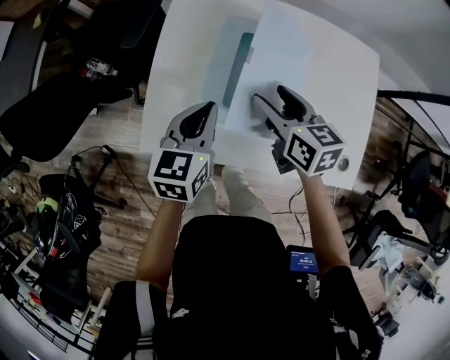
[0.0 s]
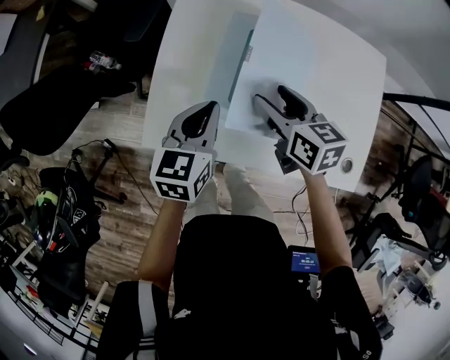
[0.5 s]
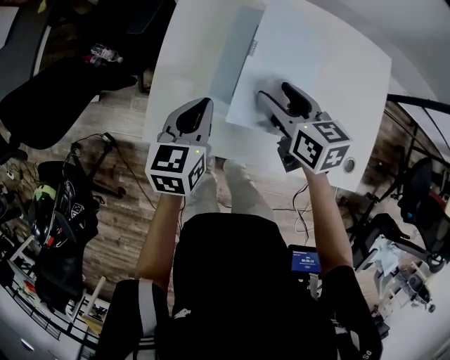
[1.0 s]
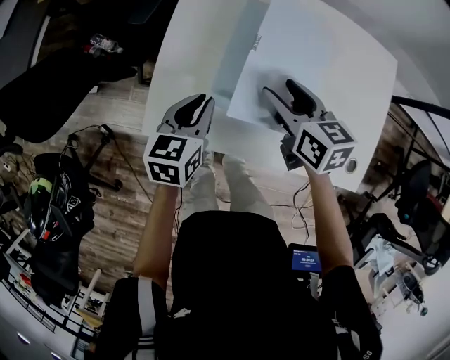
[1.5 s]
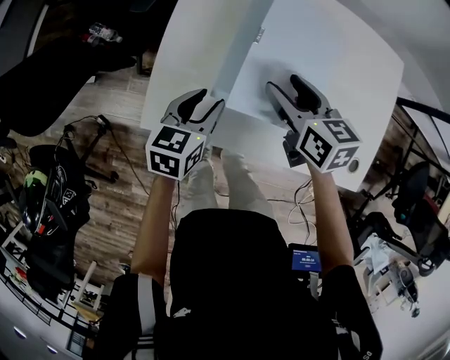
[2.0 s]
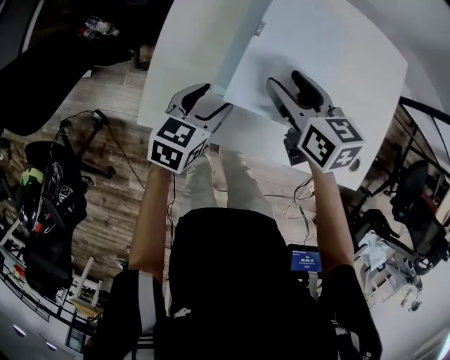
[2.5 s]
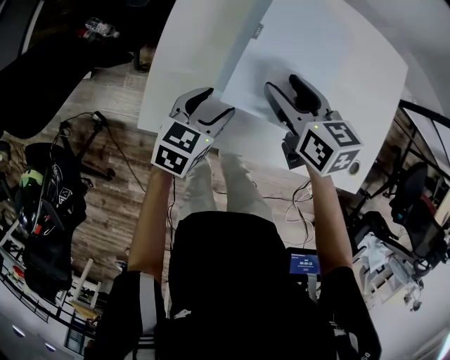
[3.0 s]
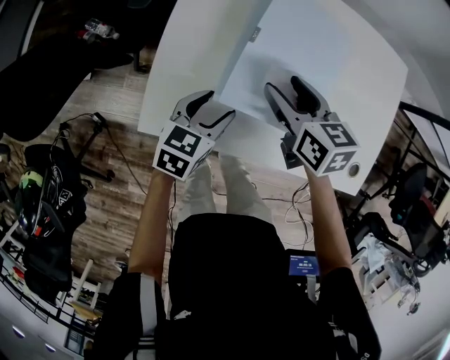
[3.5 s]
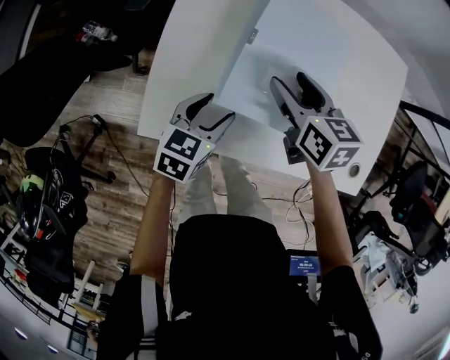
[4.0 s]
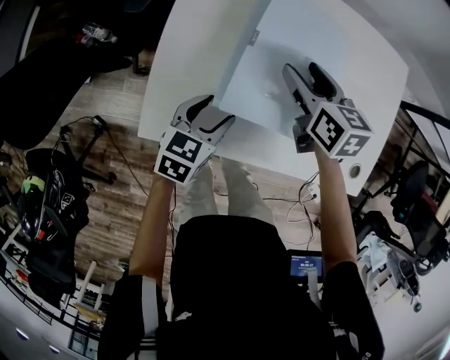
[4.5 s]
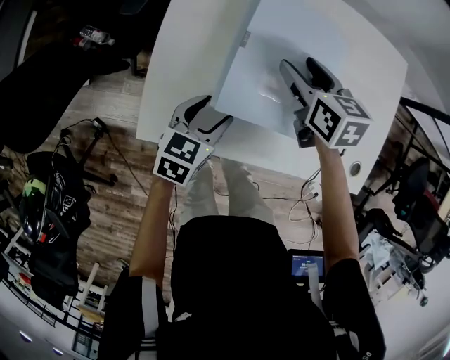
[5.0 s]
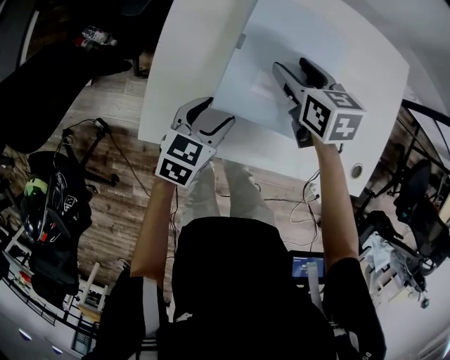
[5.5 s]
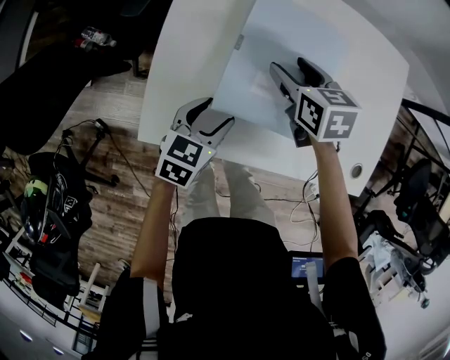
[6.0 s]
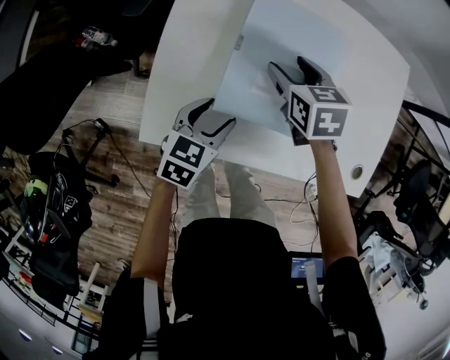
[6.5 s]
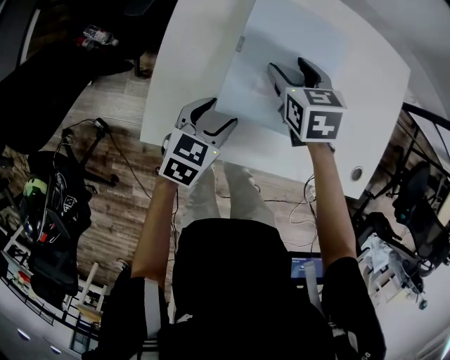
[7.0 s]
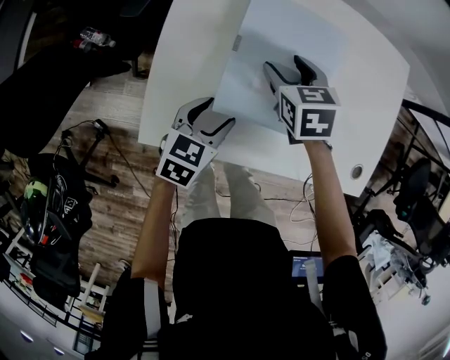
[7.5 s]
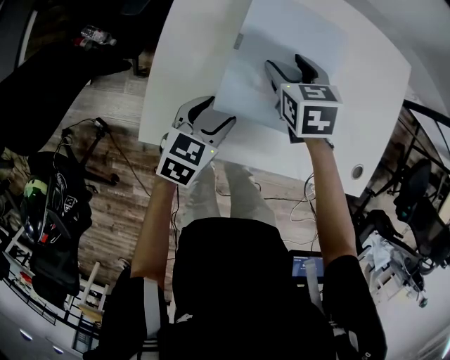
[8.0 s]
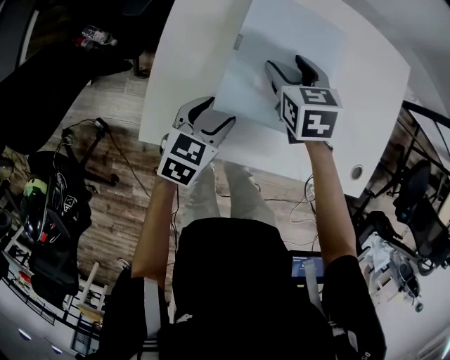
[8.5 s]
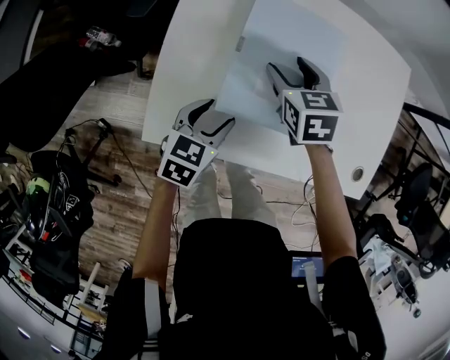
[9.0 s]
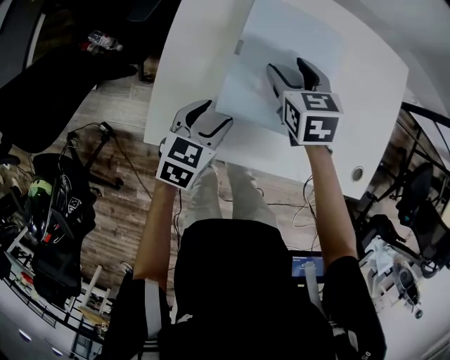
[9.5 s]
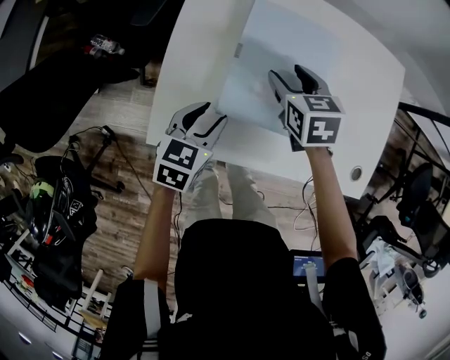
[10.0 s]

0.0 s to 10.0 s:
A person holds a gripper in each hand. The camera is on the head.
0.0 to 2.0 s: The left gripper shifts roughly 10 cm downward, and opens.
2.0 to 4.0 s: The left gripper opens.
4.0 to 6.0 s: The right gripper shifts by roughly 5 cm.
6.0 to 10.0 s: There are only small adjustments of the grippers.

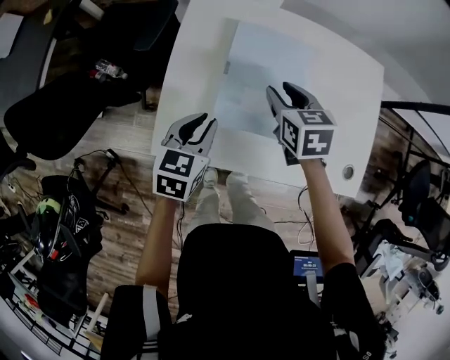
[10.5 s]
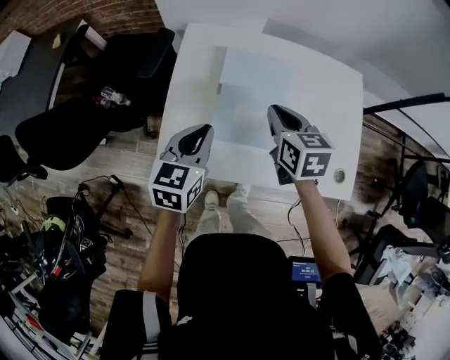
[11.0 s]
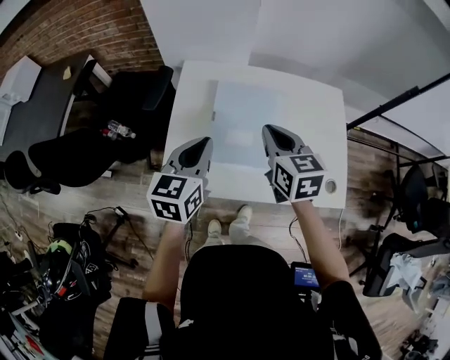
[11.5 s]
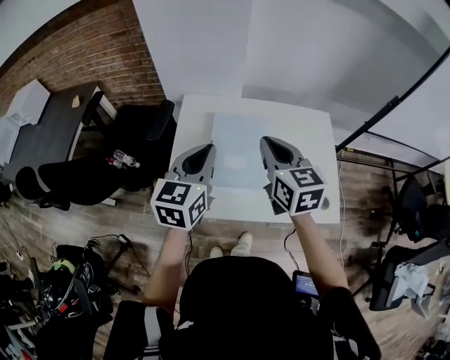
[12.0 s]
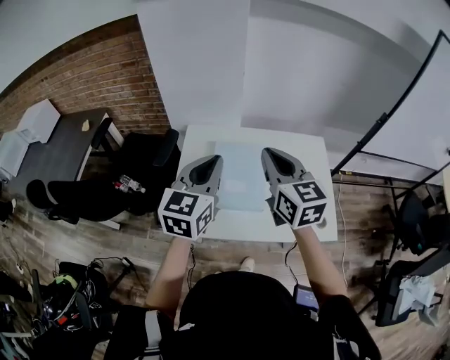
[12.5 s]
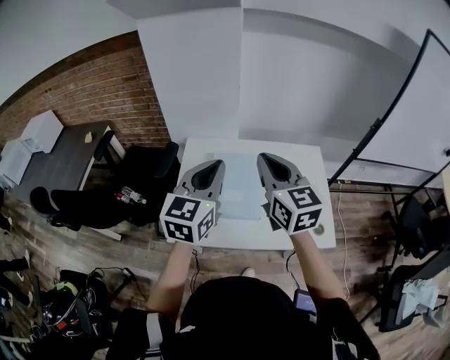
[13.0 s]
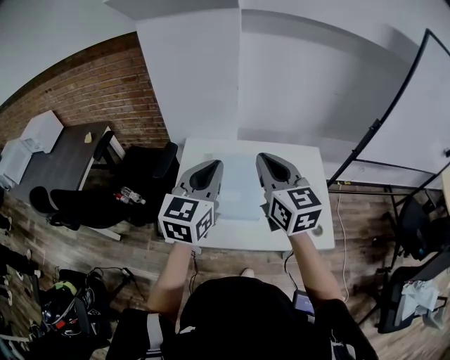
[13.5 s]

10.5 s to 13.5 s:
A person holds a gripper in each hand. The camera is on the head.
10.5 to 12.0 s: Both grippers travel together upward, approximately 25 cm. The right gripper changes its angle by some 30 degrees, and closes its fingers; the left gripper changes its angle by roughly 30 degrees.
12.0 to 13.5 s: The two grippers go about 10 cm upward.

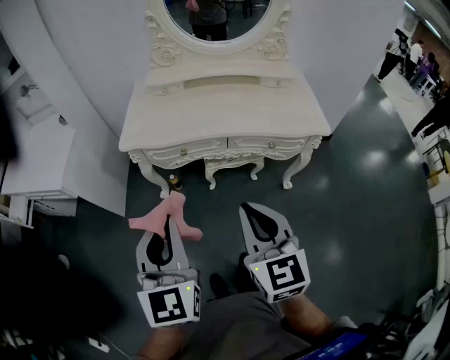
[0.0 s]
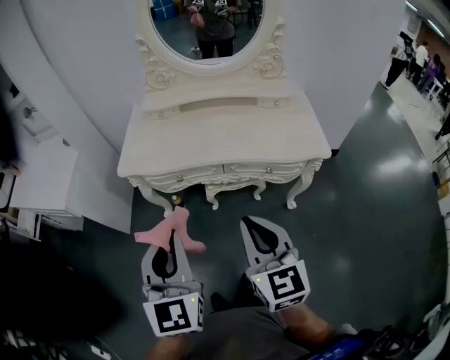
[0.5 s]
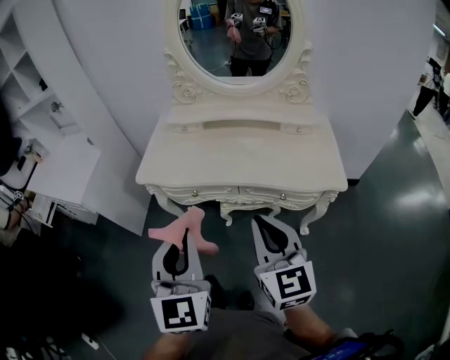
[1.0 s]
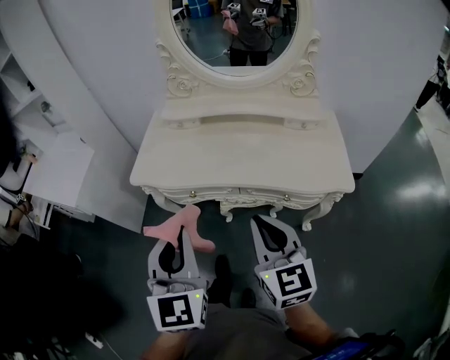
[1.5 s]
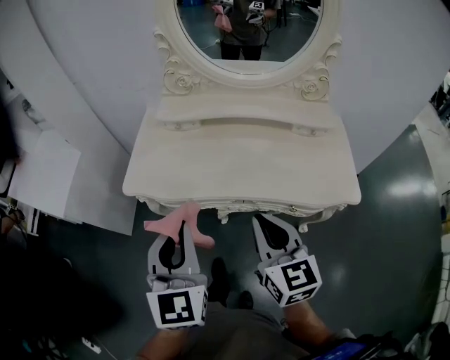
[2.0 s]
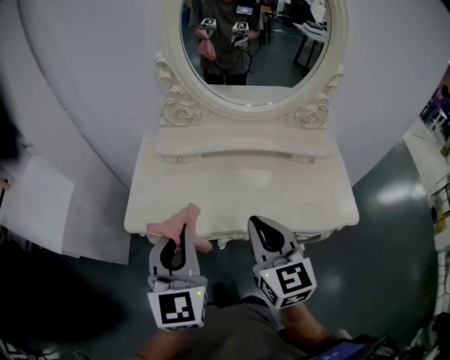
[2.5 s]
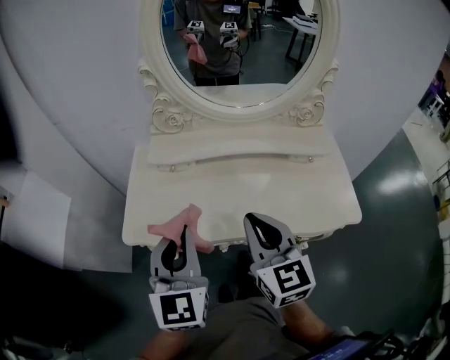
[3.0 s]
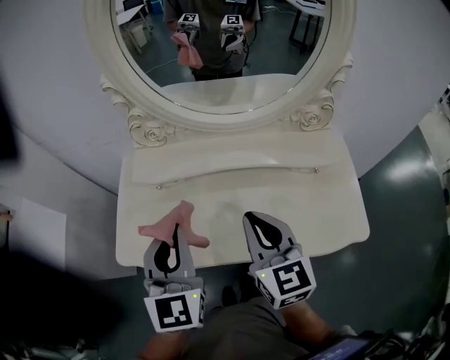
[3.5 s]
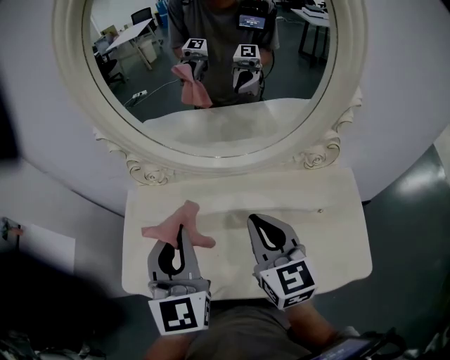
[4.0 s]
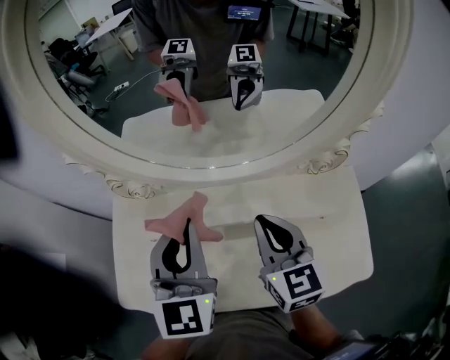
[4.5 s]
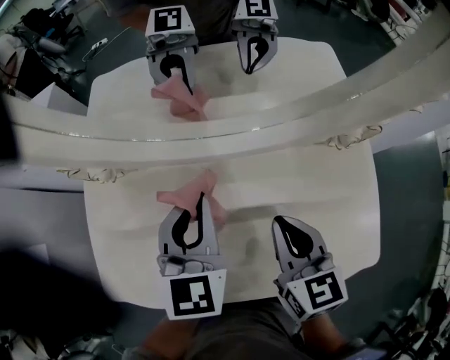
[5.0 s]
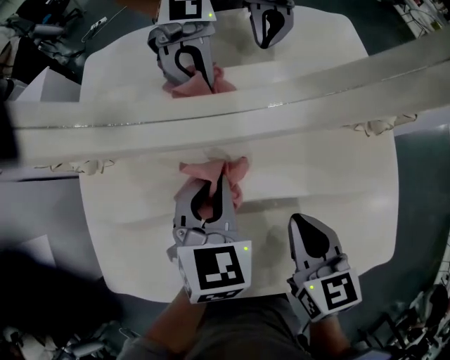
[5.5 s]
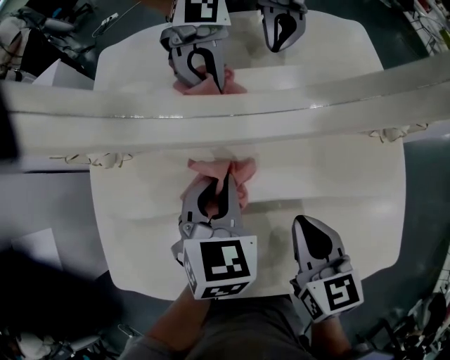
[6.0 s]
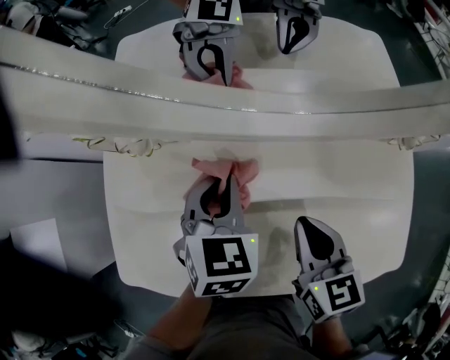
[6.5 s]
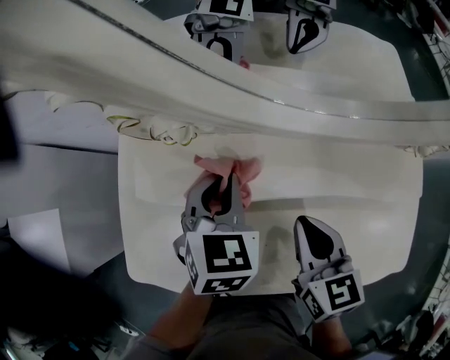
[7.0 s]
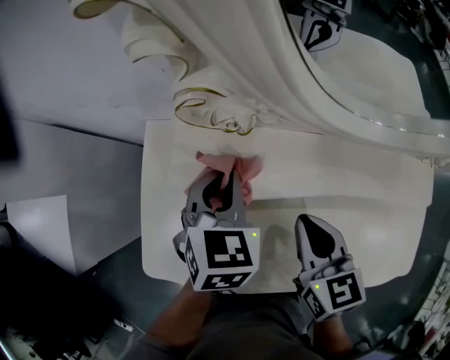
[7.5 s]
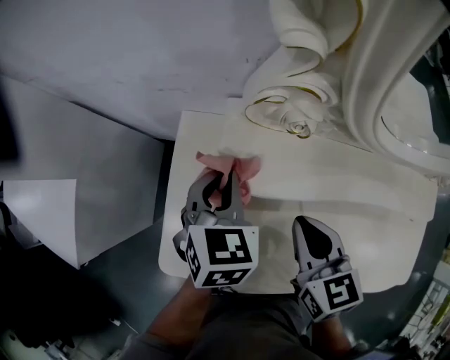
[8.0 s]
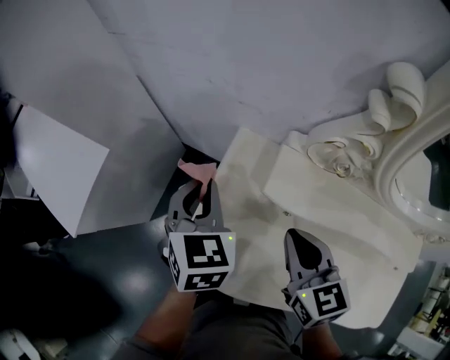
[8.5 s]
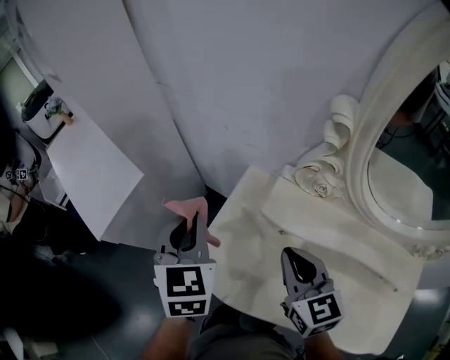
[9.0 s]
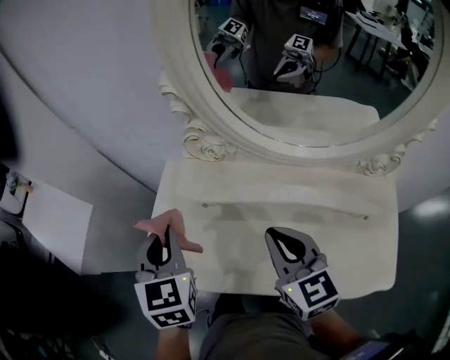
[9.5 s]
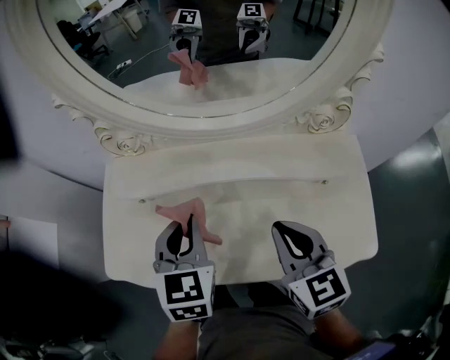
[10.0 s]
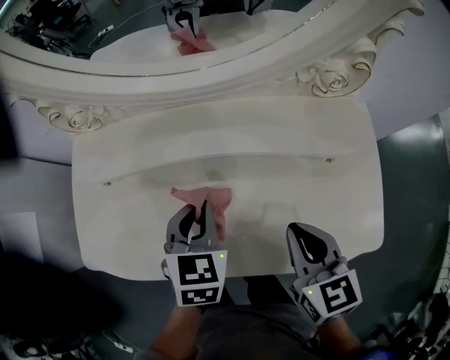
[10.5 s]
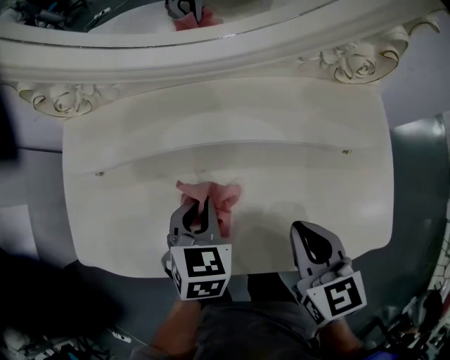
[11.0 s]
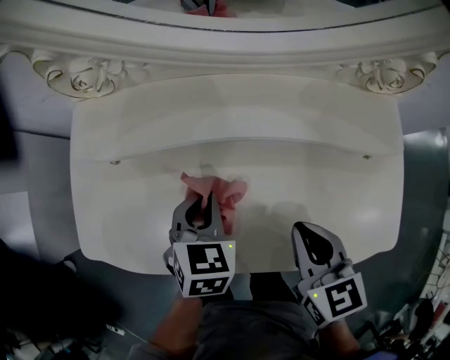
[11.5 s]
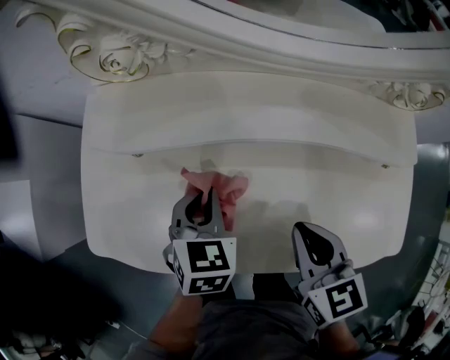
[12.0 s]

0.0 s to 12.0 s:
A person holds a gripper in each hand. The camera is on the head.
0.0 to 2.0 s: The grippers both shift forward by approximately 25 cm.
2.0 to 4.0 s: Both grippers move forward, approximately 30 cm.
4.0 to 6.0 s: The left gripper moves downward and forward, about 25 cm, and points its fingers about 30 degrees further downward; the right gripper is displaced downward by some 15 cm, and rotates roughly 30 degrees.
6.0 to 8.0 s: Both grippers move to the left, approximately 15 cm.
8.0 to 10.0 s: The right gripper ends up about 30 cm from where it was; the left gripper ends up roughly 30 cm from where it was.
10.0 to 12.0 s: The right gripper moves downward and to the left, some 15 cm. Meanwhile the left gripper travels downward by approximately 20 cm.

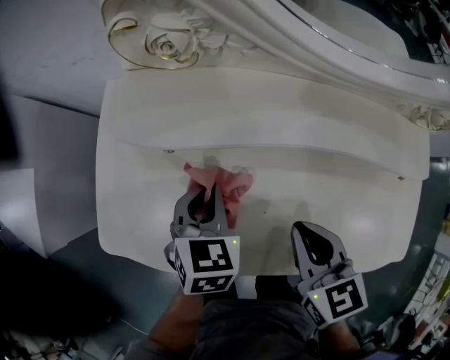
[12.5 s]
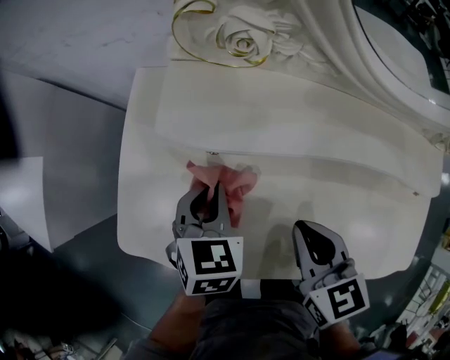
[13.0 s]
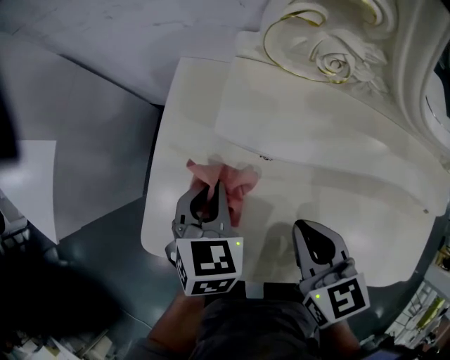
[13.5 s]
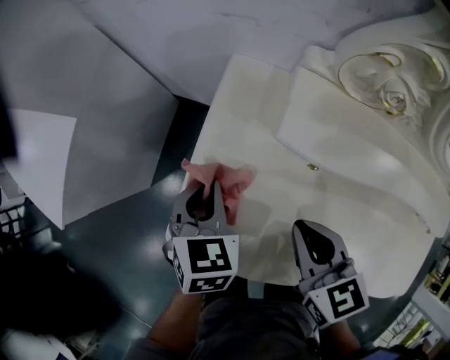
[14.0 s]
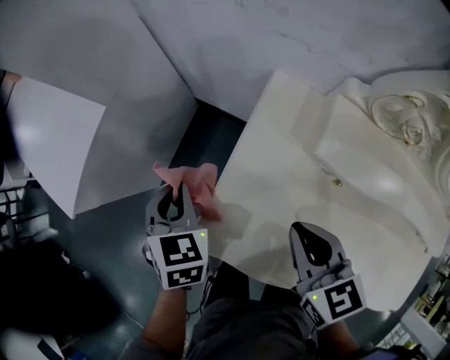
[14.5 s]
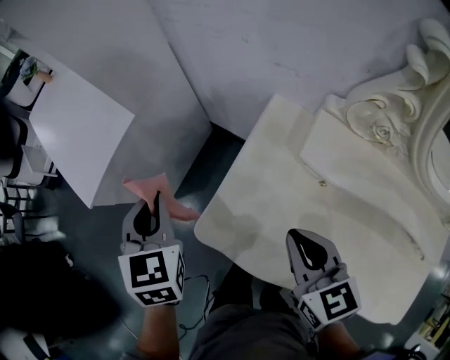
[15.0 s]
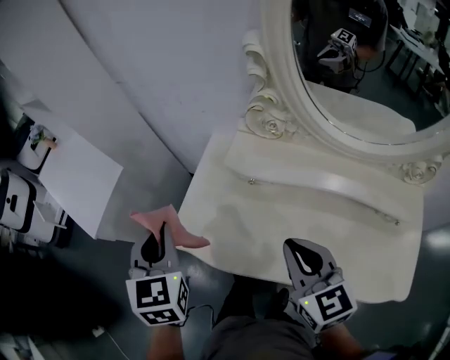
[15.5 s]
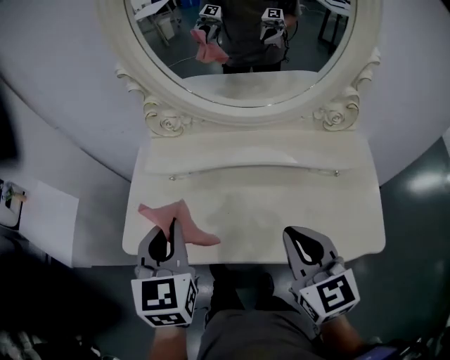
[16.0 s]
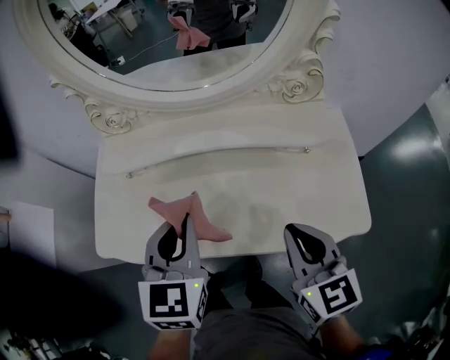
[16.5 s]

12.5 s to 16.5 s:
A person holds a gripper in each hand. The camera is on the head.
12.5 to 14.5 s: The right gripper moves about 30 cm, and turns by about 20 degrees. The left gripper shifts by about 40 cm, and swivels approximately 30 degrees.
14.5 to 16.5 s: The pair of grippers is taken some 50 cm. The left gripper swivels approximately 40 degrees. Meanwhile the right gripper swivels about 30 degrees.
